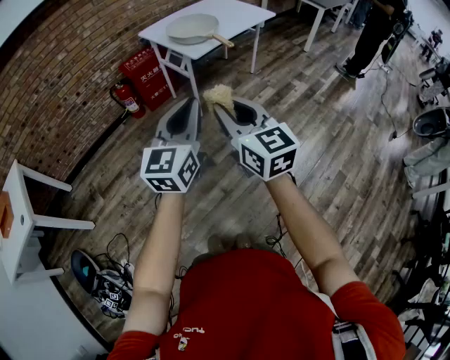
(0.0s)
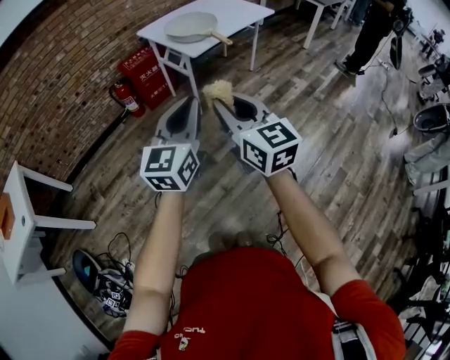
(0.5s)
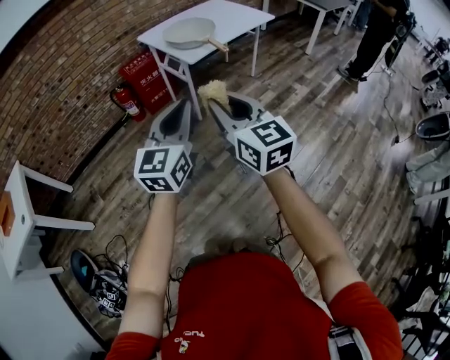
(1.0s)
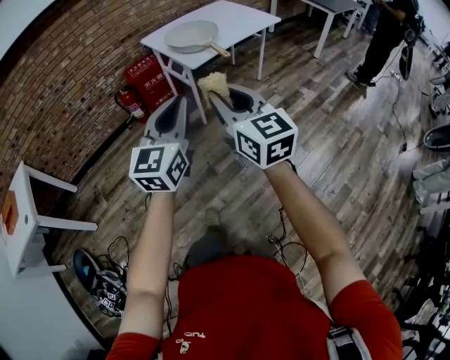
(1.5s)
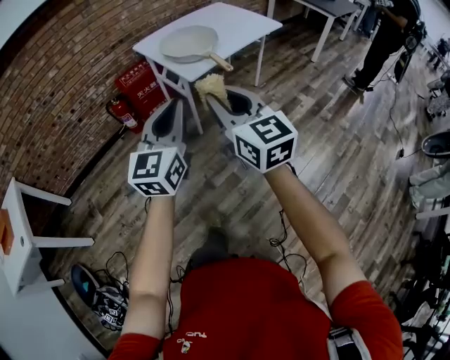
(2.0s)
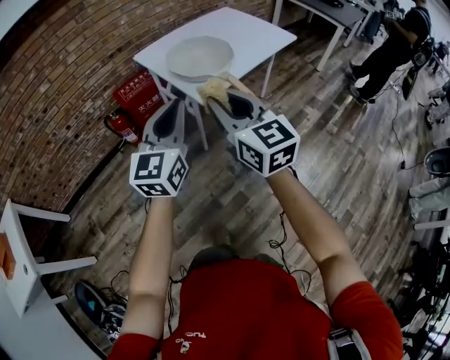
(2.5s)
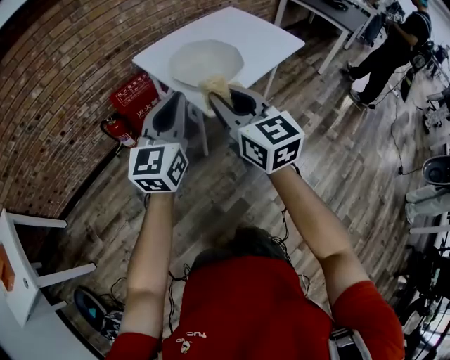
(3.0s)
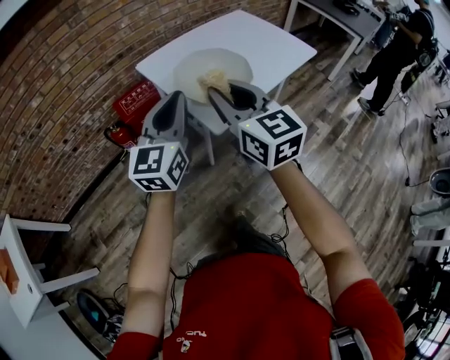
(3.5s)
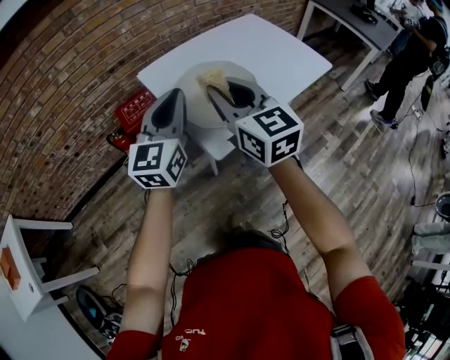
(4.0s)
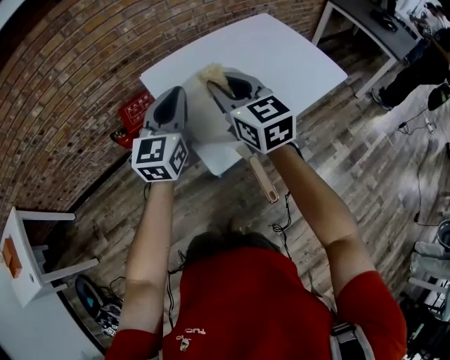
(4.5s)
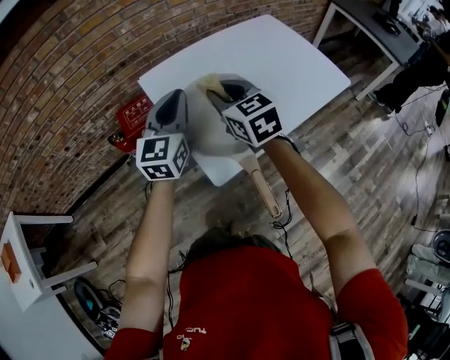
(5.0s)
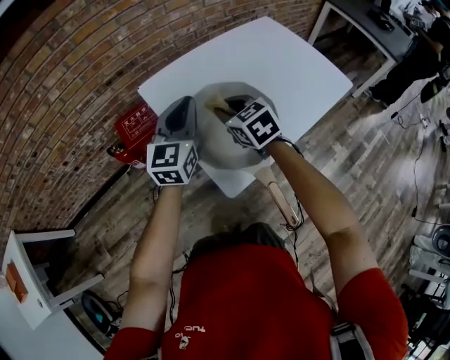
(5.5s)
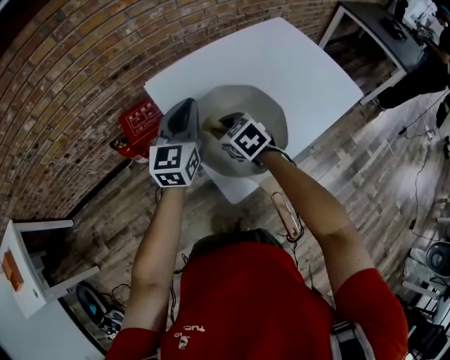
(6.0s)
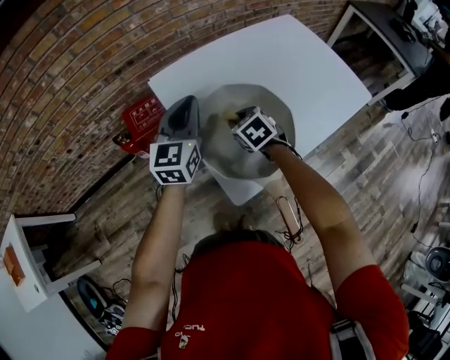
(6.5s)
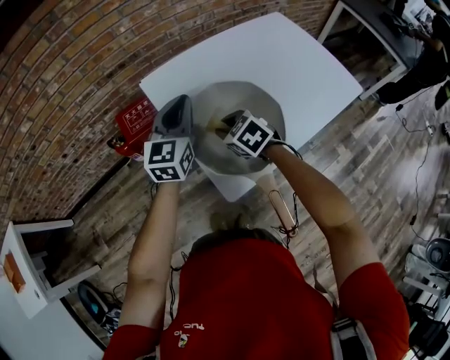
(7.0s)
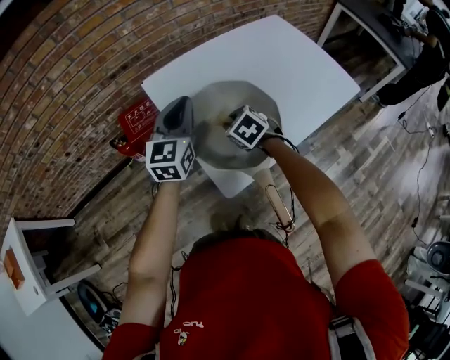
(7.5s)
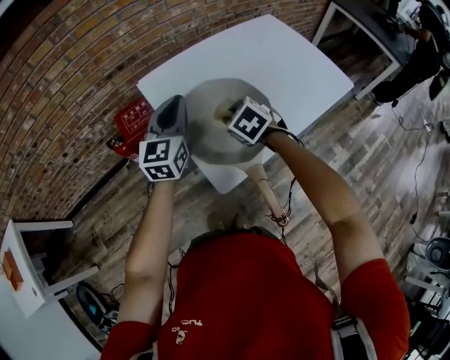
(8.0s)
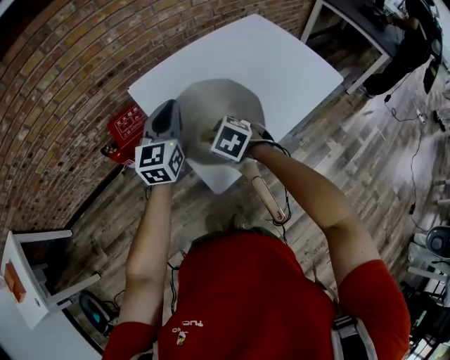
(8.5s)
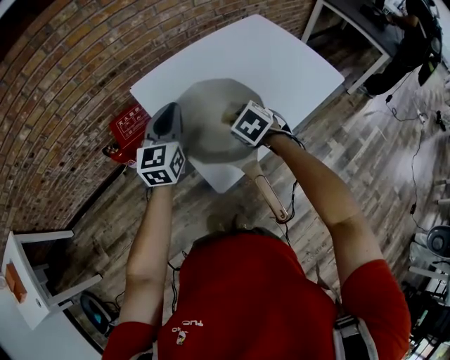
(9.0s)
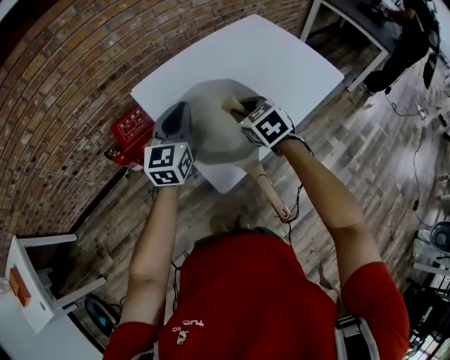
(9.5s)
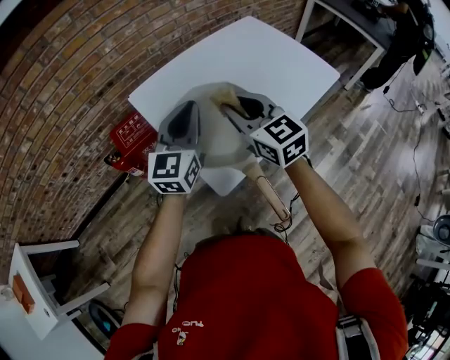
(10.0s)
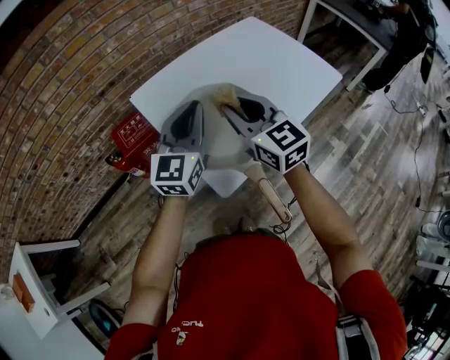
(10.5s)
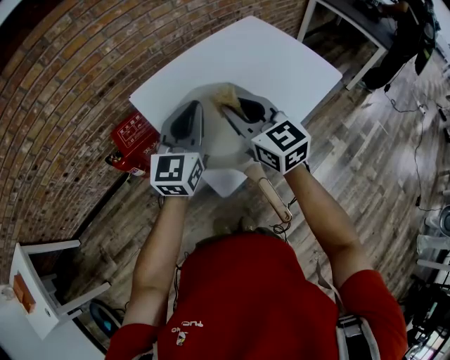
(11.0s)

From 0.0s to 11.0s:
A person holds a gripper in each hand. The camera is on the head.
From 0.0s to 2.0s: The grippers both shift forward by about 15 cm.
From 2.0s to 3.5s: Both grippers travel together forward, roughly 35 cm.
From 3.5s to 5.5s: The right gripper travels forward and downward by about 35 cm, and points its fingers some 30 degrees further downward, while the left gripper shifts approximately 25 cm forward.
From 5.5s to 7.5s: The right gripper goes some 10 cm downward, and swivels roughly 20 degrees.
From 7.5s to 9.0s: The right gripper goes approximately 5 cm to the right.
From 9.0s to 11.0s: The right gripper goes roughly 20 cm upward, and angles its fingers upward, by about 60 degrees. Meanwhile the left gripper goes about 10 cm to the right and upward.

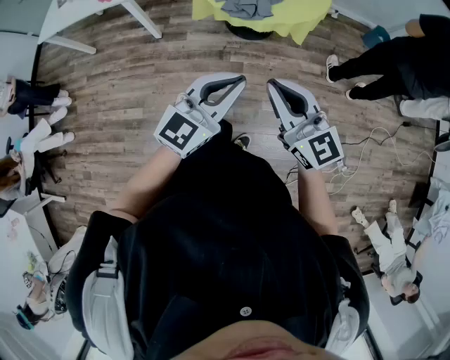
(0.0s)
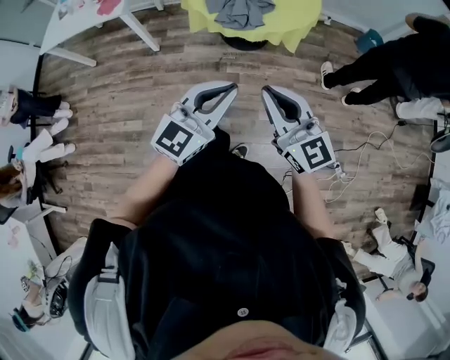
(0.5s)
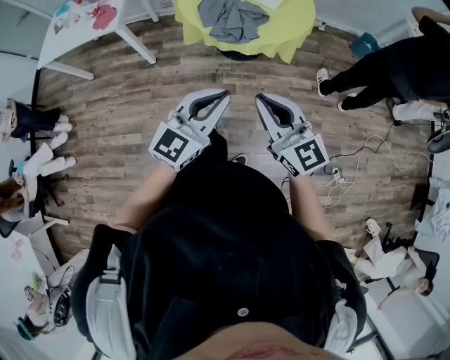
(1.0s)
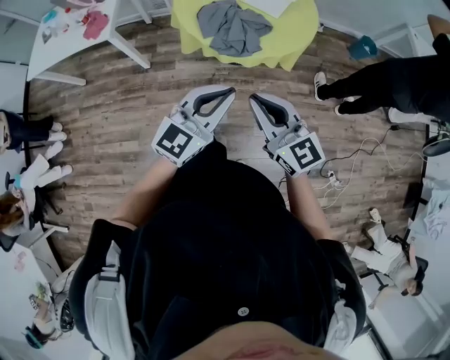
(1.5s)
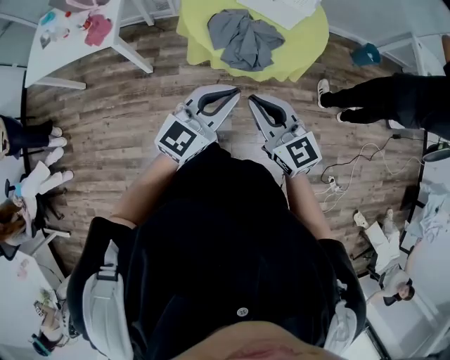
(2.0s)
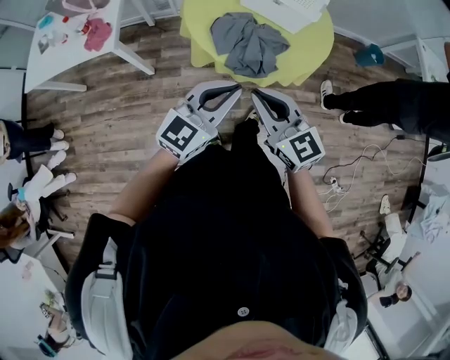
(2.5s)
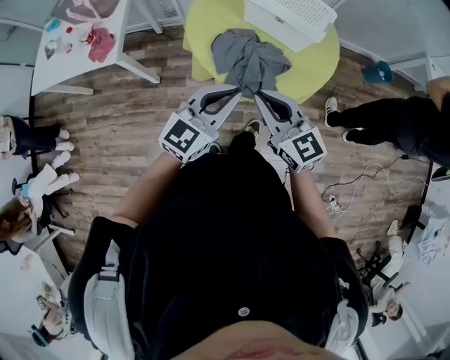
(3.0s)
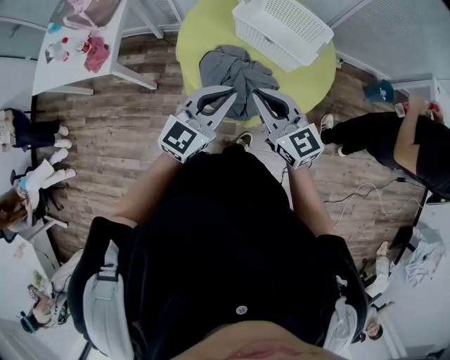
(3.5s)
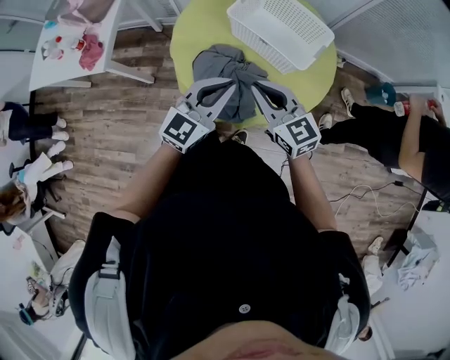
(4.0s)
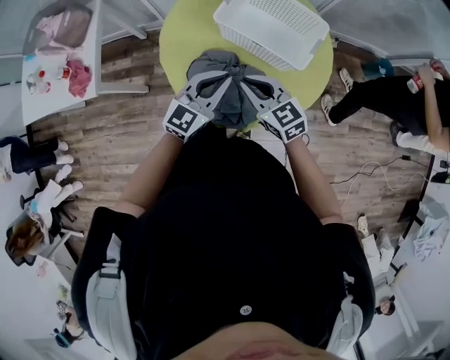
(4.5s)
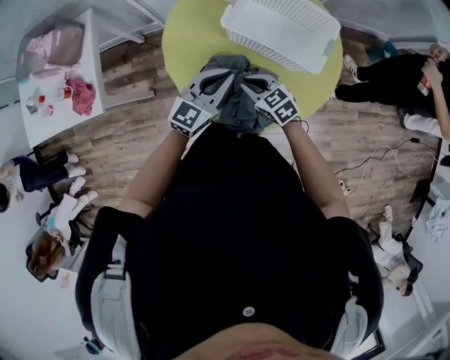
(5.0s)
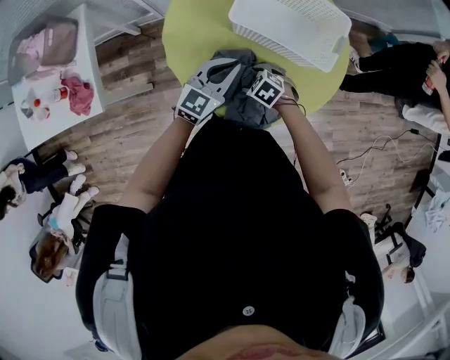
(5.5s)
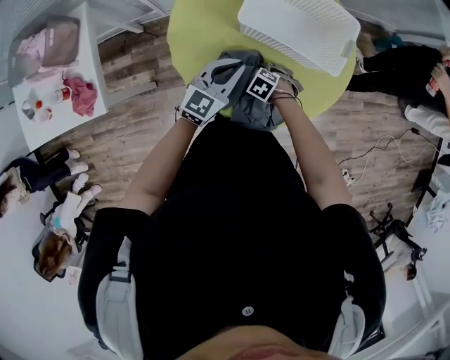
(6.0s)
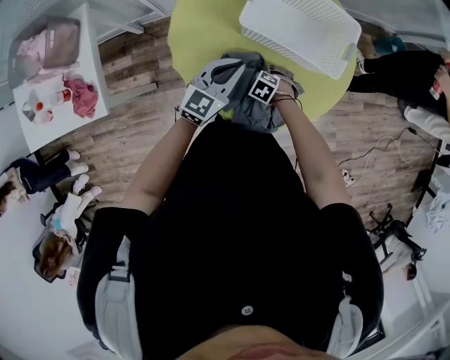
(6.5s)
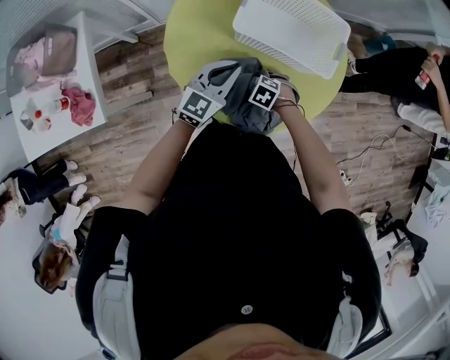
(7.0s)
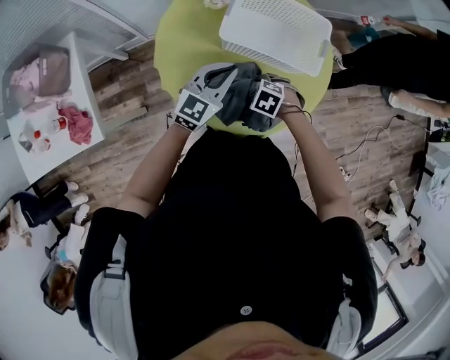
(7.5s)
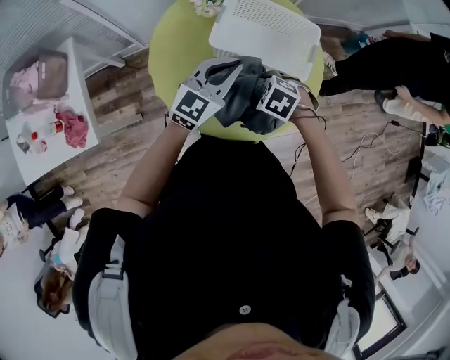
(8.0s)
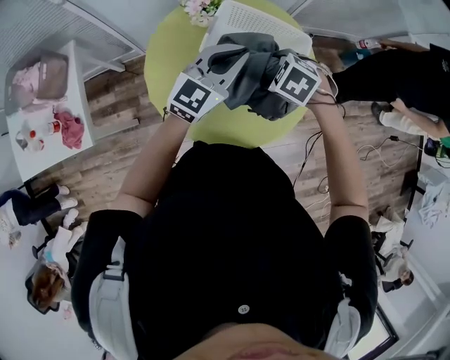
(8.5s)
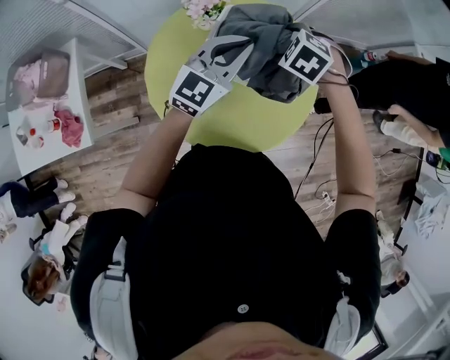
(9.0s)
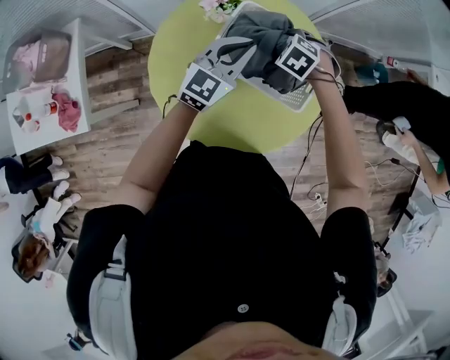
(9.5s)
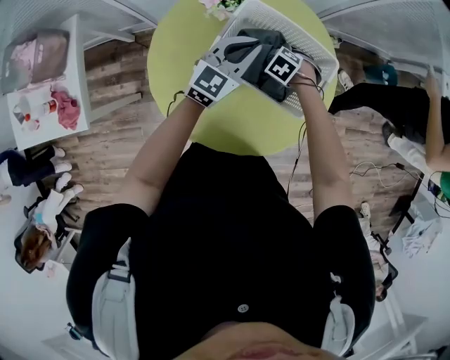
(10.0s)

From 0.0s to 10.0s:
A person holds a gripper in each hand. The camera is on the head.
From 0.0s to 2.0s: The left gripper travels forward by about 20 cm. The right gripper travels forward and to the left by about 25 cm.
From 2.0s to 4.0s: Both grippers move forward, roughly 30 cm.
From 4.0s to 6.0s: The left gripper shifts by some 25 cm. Meanwhile the right gripper goes about 35 cm downward, angles its fingers downward, by roughly 60 degrees, and opens its fingers.
From 6.0s to 8.0s: The left gripper moves upward, some 10 cm, while the right gripper goes roughly 20 cm upward.
From 8.0s to 10.0s: The left gripper shifts by roughly 15 cm. The right gripper moves roughly 25 cm.

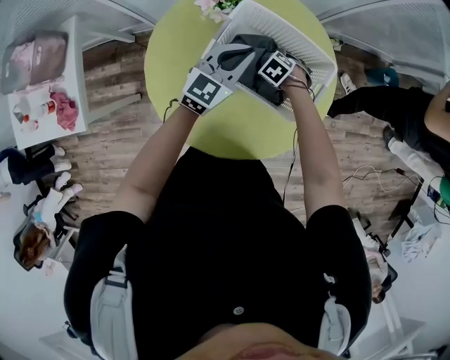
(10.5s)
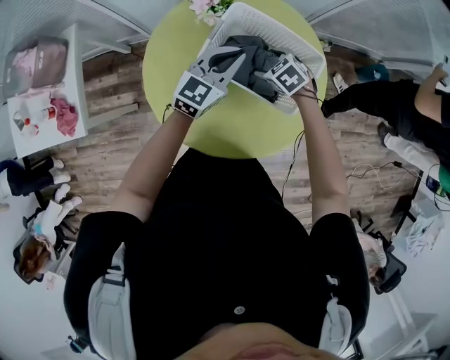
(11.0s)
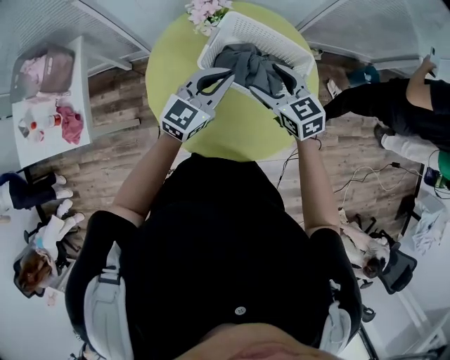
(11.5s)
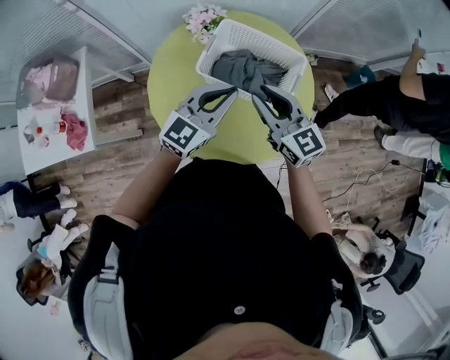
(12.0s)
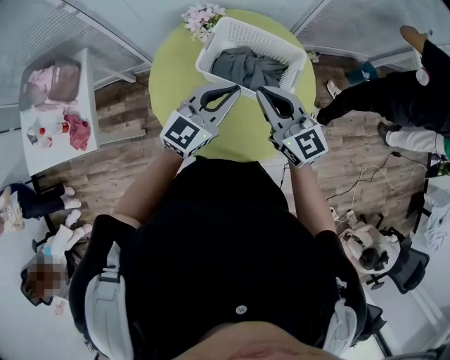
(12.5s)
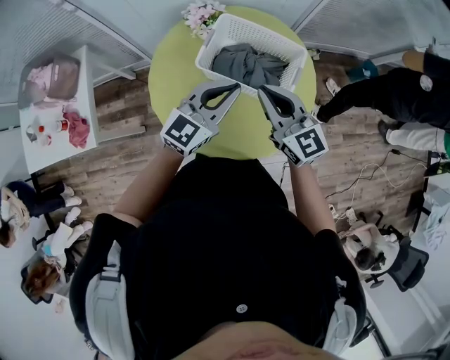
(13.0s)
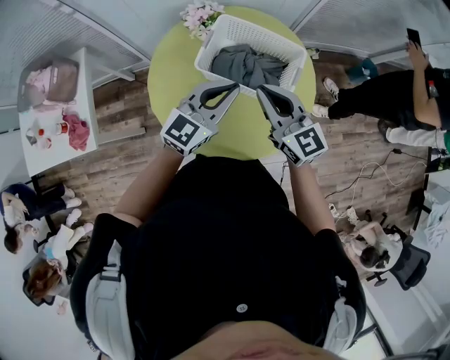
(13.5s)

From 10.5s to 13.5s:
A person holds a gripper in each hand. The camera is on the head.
From 10.5s to 12.0s: The left gripper changes place by some 20 cm. The right gripper travels upward by roughly 35 cm, points its fingers approximately 70 degrees further upward, and closes its fingers.
From 12.0s to 13.5s: The grippers stay close to where they were, moving slightly.

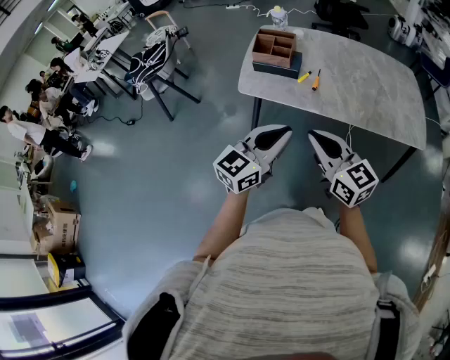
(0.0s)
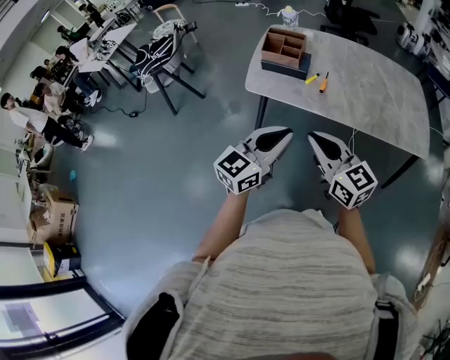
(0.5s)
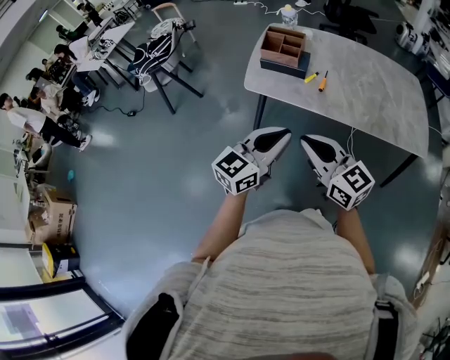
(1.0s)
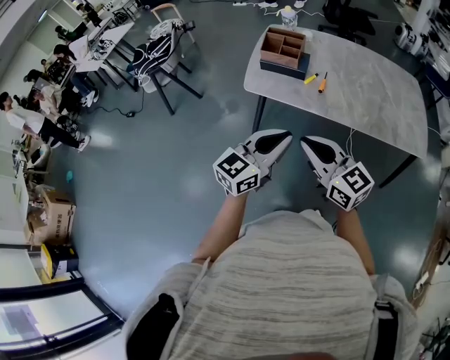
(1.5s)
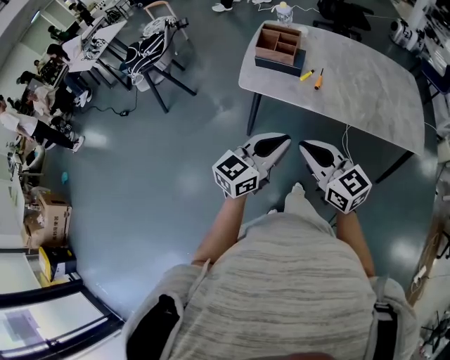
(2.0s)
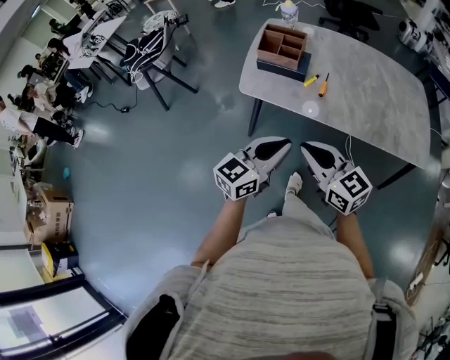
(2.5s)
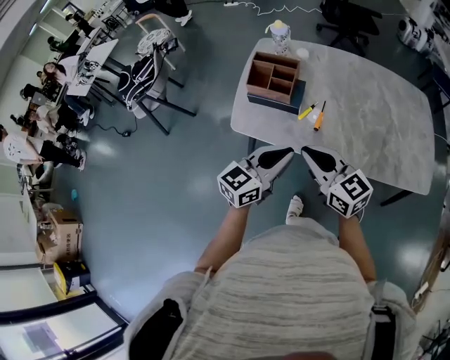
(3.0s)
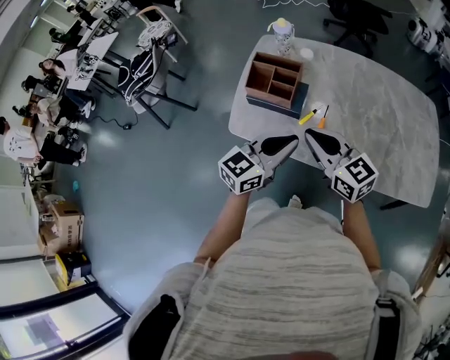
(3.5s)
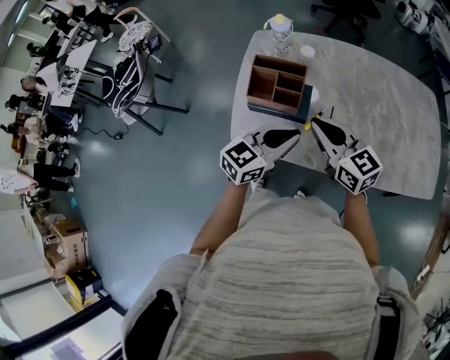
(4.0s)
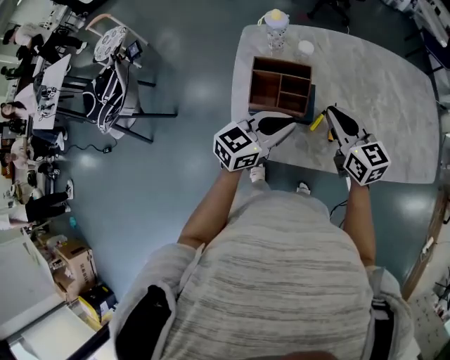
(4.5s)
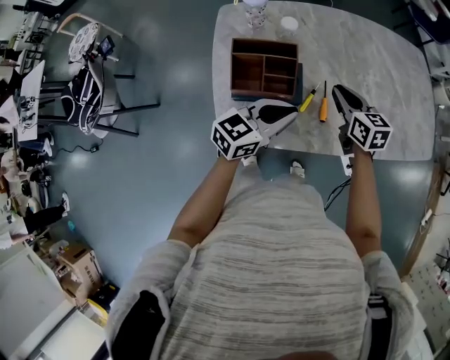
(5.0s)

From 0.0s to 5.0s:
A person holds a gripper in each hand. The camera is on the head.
From 0.0s to 2.5s: Both grippers move forward, some 5 cm.
From 2.5s to 5.0s: The right gripper ends up some 50 cm from where it was, and swivels approximately 40 degrees. The left gripper moves roughly 40 cm, and turns by about 30 degrees.
